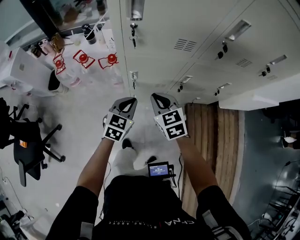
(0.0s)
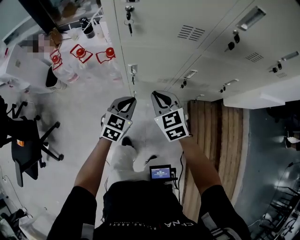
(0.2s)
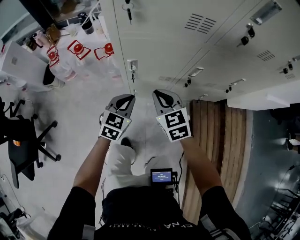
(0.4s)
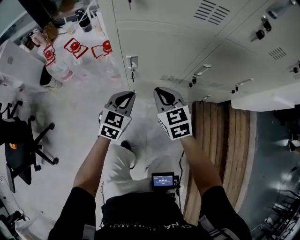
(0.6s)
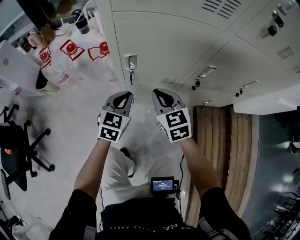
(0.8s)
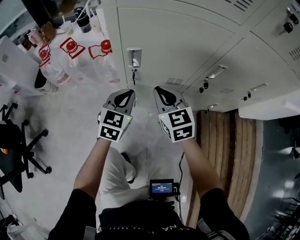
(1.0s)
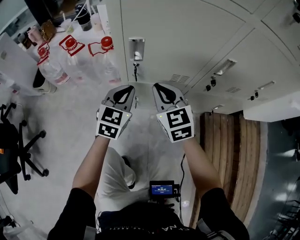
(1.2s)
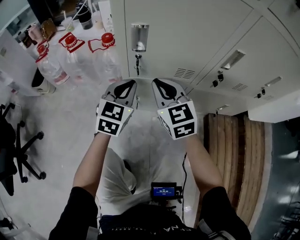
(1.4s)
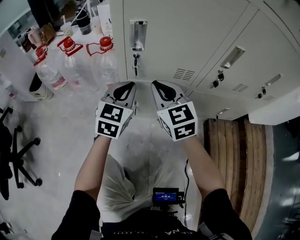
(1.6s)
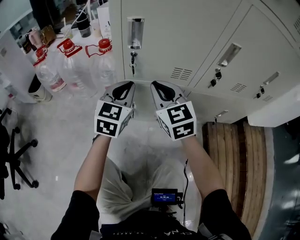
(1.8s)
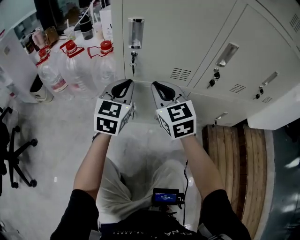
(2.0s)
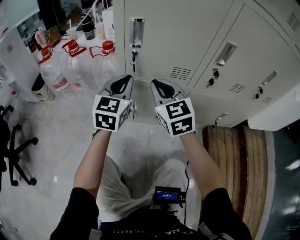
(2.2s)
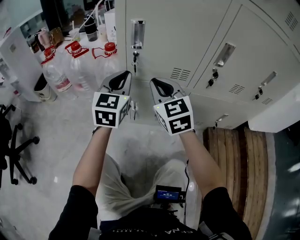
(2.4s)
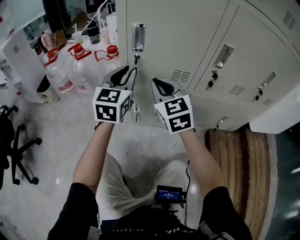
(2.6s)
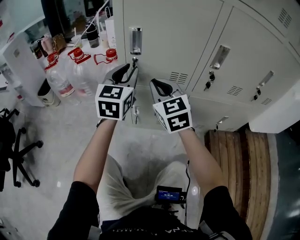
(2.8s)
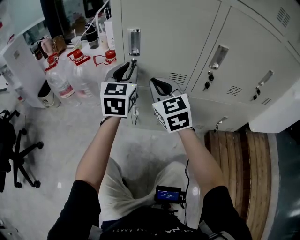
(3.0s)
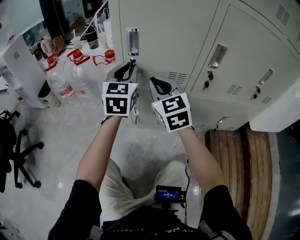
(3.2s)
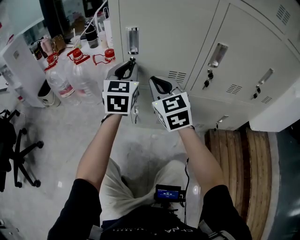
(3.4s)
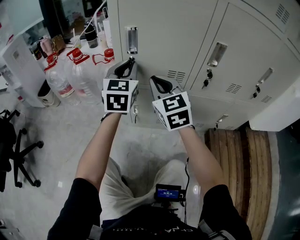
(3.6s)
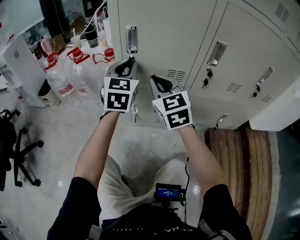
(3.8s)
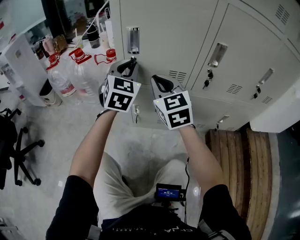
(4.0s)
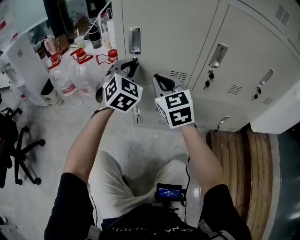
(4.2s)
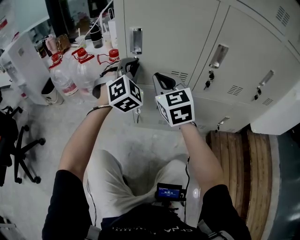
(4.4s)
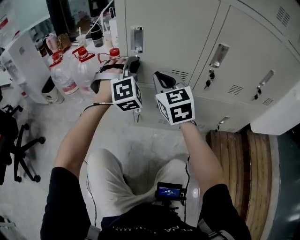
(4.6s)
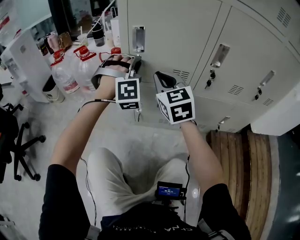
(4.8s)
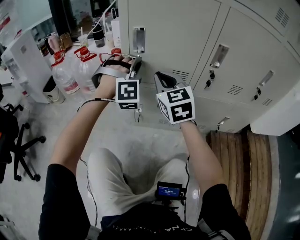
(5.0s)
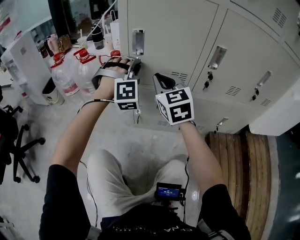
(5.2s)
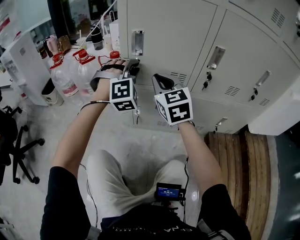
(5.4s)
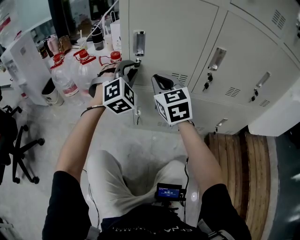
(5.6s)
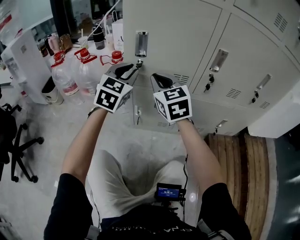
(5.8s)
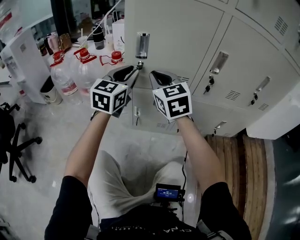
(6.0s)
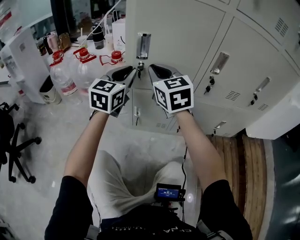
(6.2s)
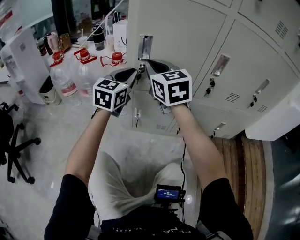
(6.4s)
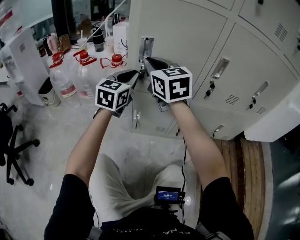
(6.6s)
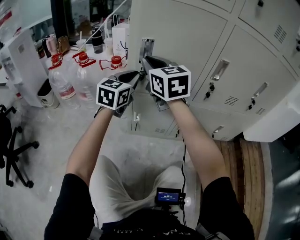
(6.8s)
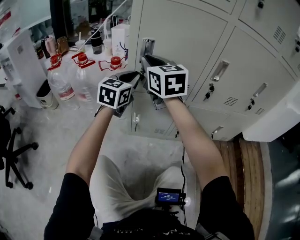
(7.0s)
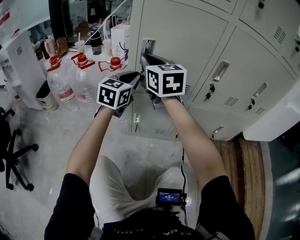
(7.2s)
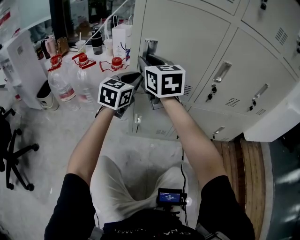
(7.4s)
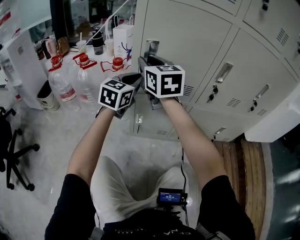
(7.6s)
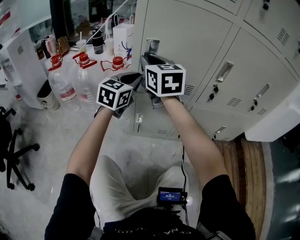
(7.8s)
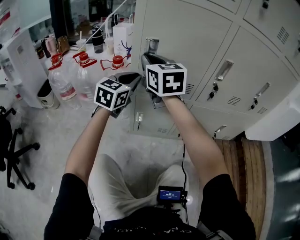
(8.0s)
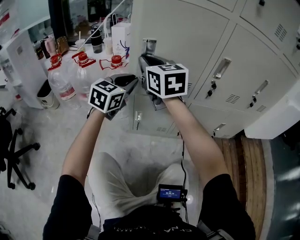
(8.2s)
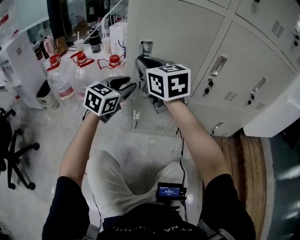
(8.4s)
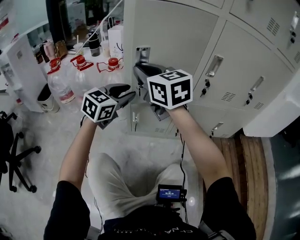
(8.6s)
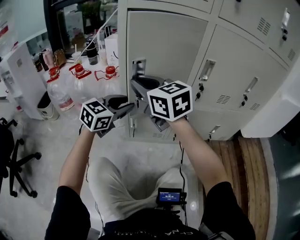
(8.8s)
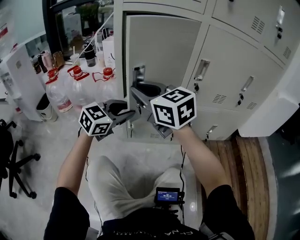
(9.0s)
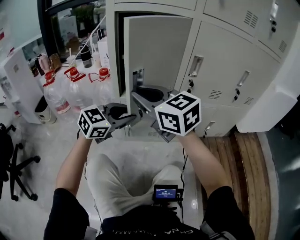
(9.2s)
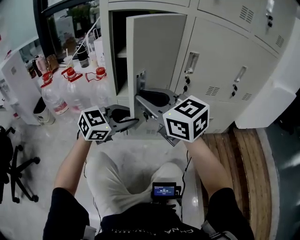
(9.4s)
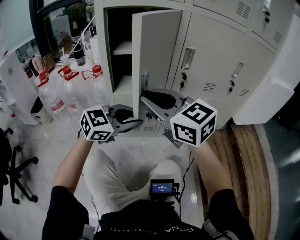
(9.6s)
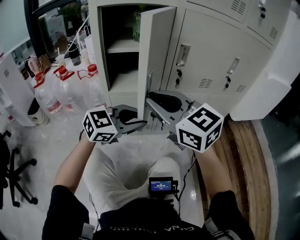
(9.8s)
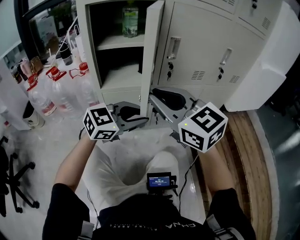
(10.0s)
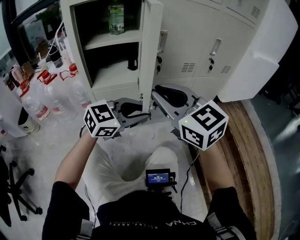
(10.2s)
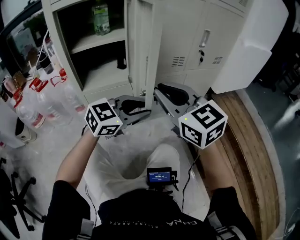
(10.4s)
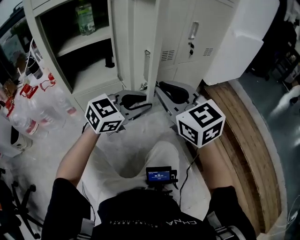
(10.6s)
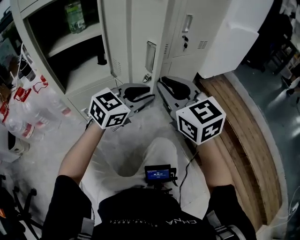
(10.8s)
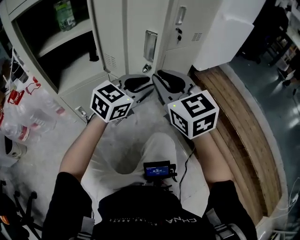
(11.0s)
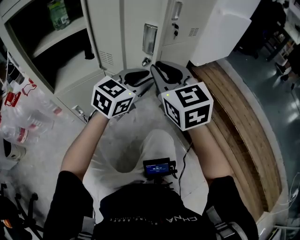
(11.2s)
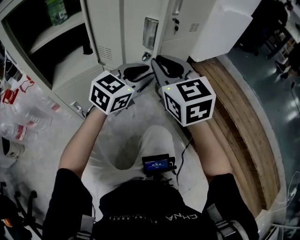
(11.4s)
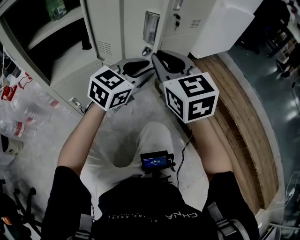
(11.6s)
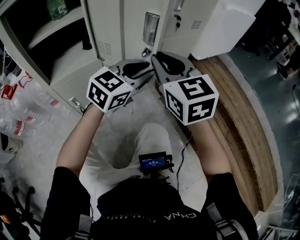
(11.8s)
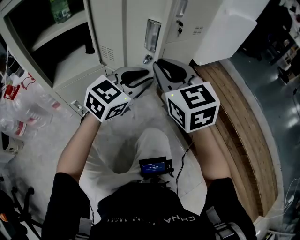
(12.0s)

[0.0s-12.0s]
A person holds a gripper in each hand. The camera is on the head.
0.0s to 1.6s: The grippers both shift downward by roughly 30 cm.
1.6s to 3.0s: The left gripper travels upward by some 10 cm.
3.0s to 4.4s: The left gripper rolls clockwise, seen from behind, by approximately 50 degrees.
4.4s to 6.0s: The left gripper rotates around the line of its fingers by about 50 degrees, counterclockwise from behind.
6.0s to 7.6s: The right gripper goes approximately 10 cm to the left, upward and forward. Meanwhile the left gripper moves roughly 5 cm.
7.6s to 9.0s: The two grippers go some 15 cm backward. The left gripper changes its angle by roughly 30 degrees, and opens its fingers.
9.0s to 10.4s: The right gripper shifts by roughly 25 cm, and changes its angle by roughly 30 degrees; the left gripper changes place by about 25 cm, and turns by approximately 30 degrees.
10.4s to 12.0s: Both grippers travel together forward and to the right, roughly 10 cm. The right gripper turns by about 20 degrees.

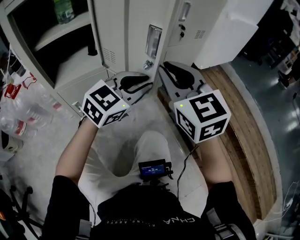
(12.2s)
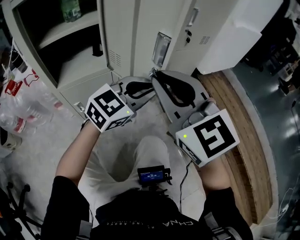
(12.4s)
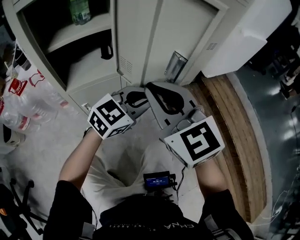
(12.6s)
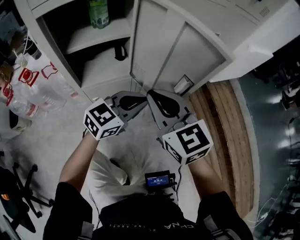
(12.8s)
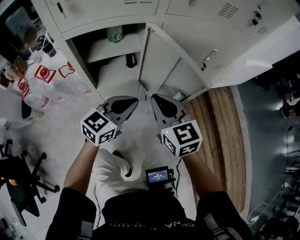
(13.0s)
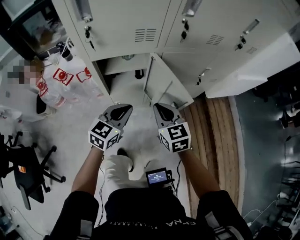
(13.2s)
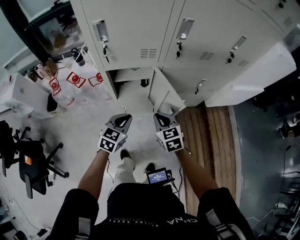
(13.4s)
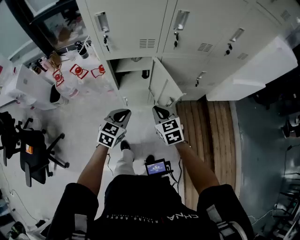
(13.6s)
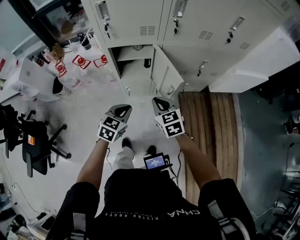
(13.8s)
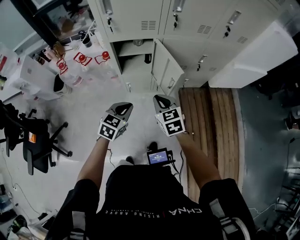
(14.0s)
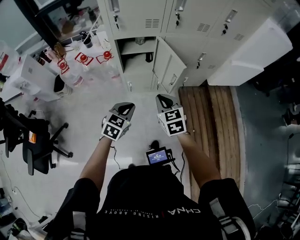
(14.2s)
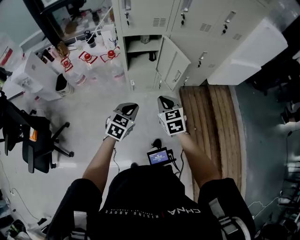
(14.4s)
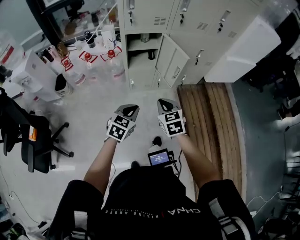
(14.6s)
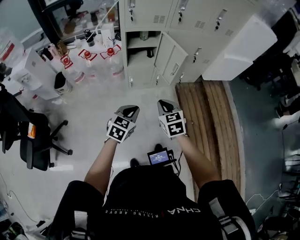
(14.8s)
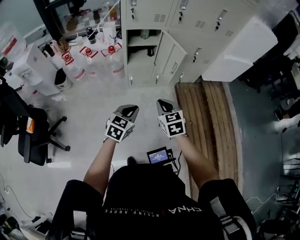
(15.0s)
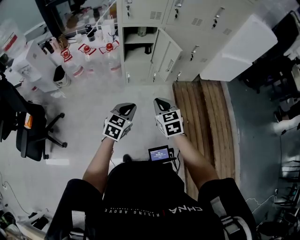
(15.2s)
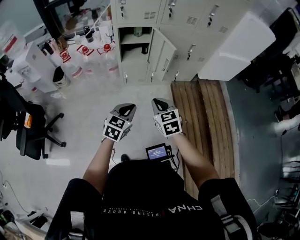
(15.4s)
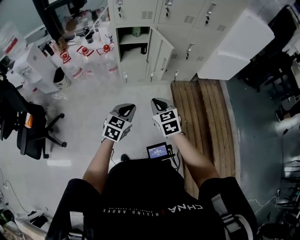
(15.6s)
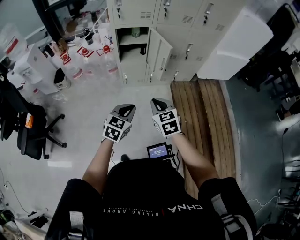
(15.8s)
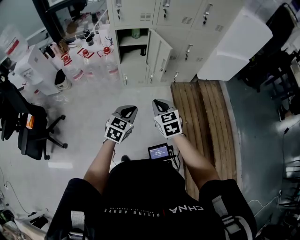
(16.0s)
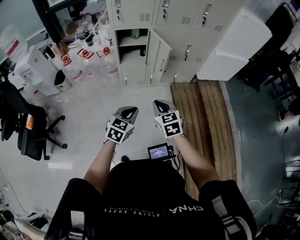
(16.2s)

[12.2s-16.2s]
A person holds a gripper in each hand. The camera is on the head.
12.2s to 13.6s: The grippers both shift upward by about 30 cm. The left gripper changes its angle by approximately 50 degrees. The right gripper changes its angle by approximately 30 degrees.
13.6s to 14.8s: Both grippers move backward, some 30 cm.
14.8s to 16.2s: The two grippers go some 15 cm to the right and backward.

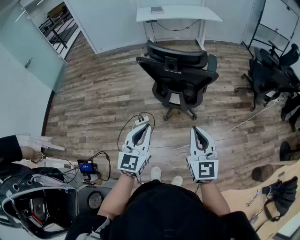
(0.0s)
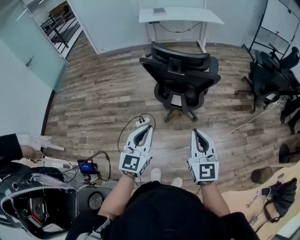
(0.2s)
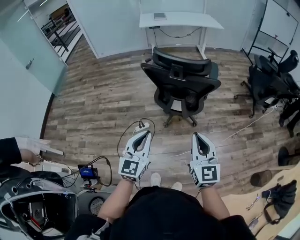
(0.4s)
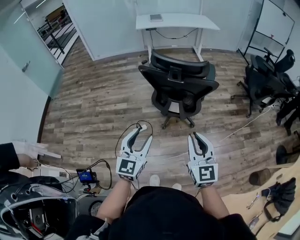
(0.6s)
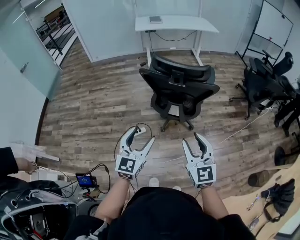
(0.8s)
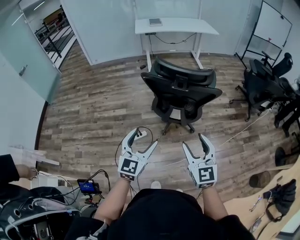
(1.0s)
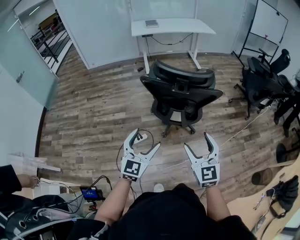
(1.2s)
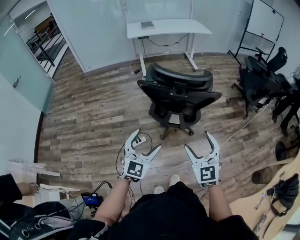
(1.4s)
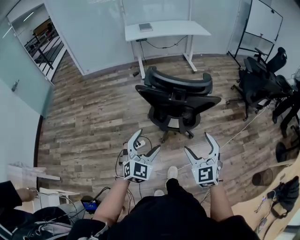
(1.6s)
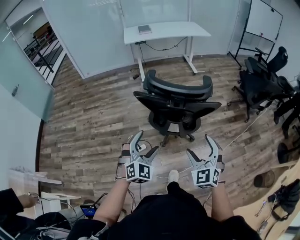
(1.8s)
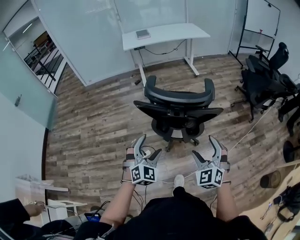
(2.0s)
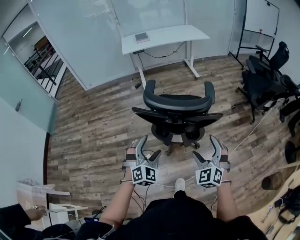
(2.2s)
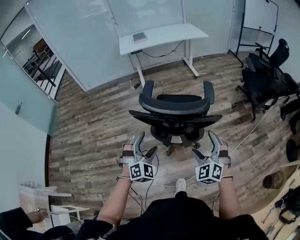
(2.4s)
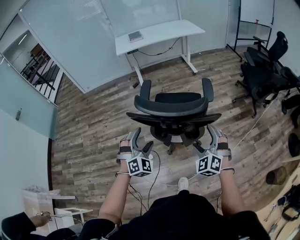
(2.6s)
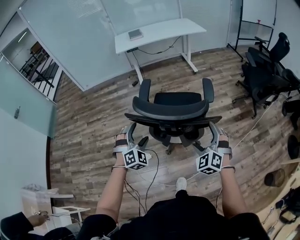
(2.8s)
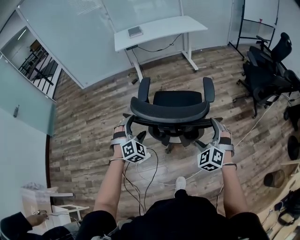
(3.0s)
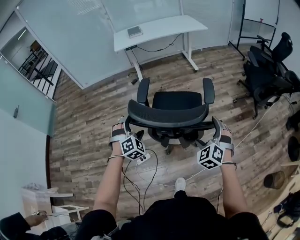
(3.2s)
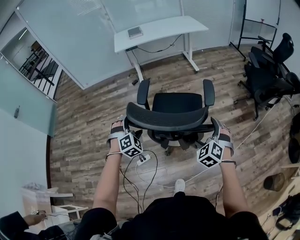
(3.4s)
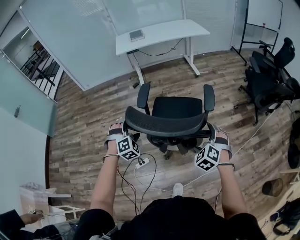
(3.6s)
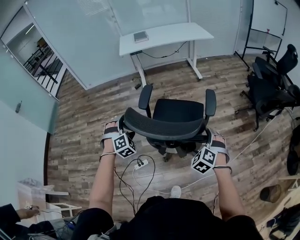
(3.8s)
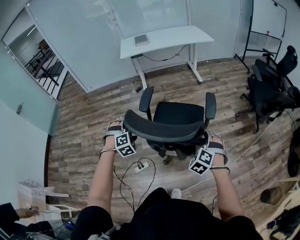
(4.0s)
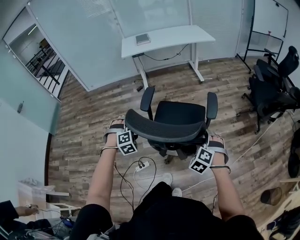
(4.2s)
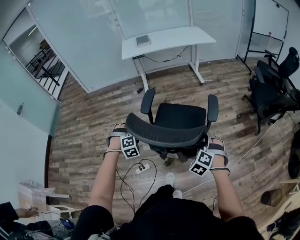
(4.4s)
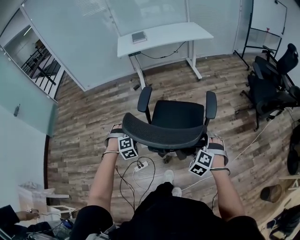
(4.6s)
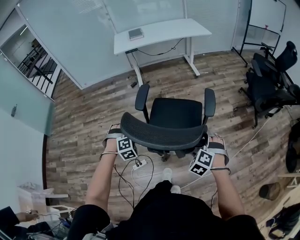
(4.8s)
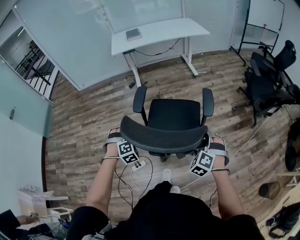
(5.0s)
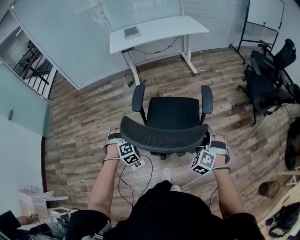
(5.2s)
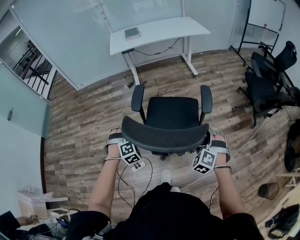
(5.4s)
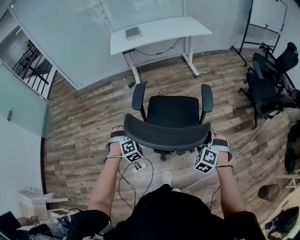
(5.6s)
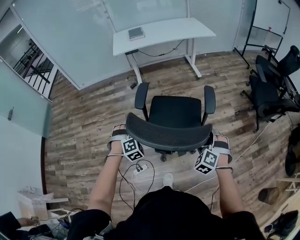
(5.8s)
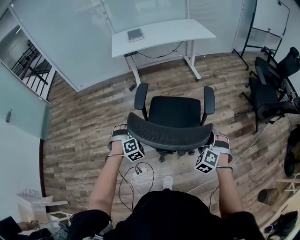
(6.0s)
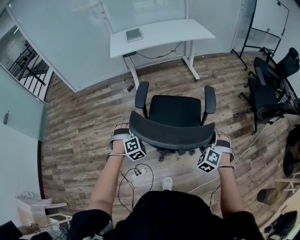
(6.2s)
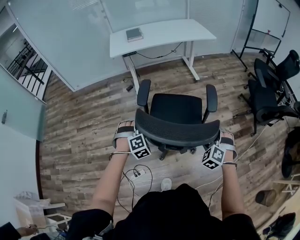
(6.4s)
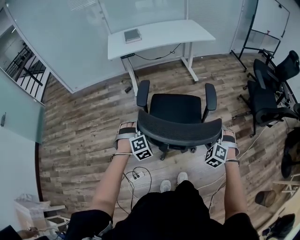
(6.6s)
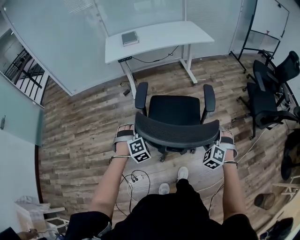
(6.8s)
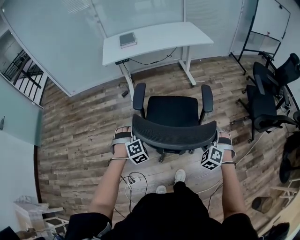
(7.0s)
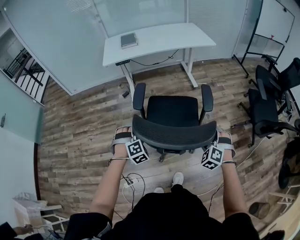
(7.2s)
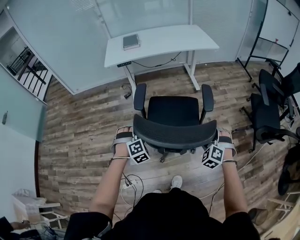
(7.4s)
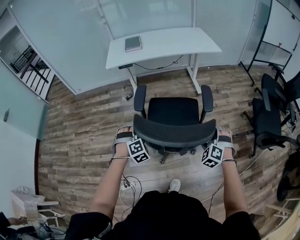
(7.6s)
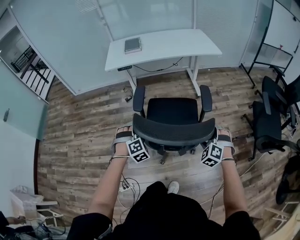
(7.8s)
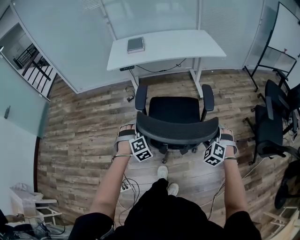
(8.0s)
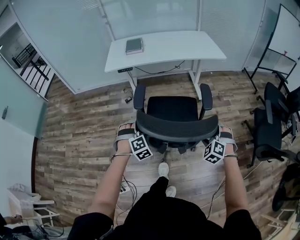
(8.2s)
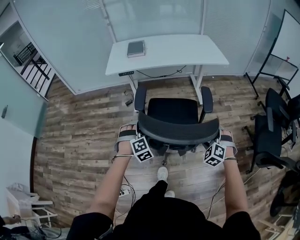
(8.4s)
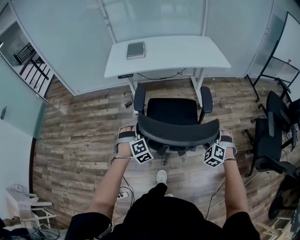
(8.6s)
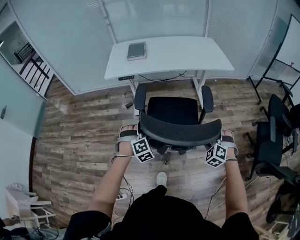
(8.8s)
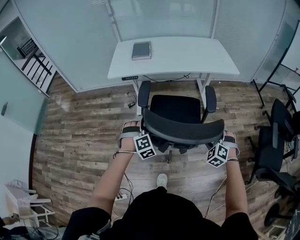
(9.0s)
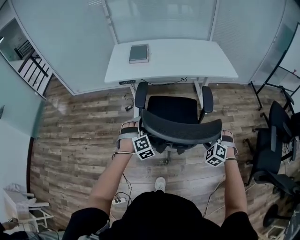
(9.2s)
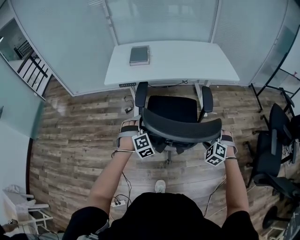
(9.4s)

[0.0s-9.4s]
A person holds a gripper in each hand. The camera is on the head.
0.0s to 1.6s: The right gripper travels forward, to the left and downward by some 15 cm, turns by roughly 20 degrees, and opens its fingers; the left gripper heads forward, covering about 15 cm, rotates roughly 30 degrees, and opens.
1.6s to 3.2s: The left gripper heads forward, covering some 30 cm, and rotates approximately 40 degrees, while the right gripper shifts some 25 cm forward and to the right, and changes its angle by roughly 30 degrees.
3.2s to 4.8s: The right gripper moves downward, approximately 5 cm, and swivels approximately 20 degrees; the left gripper is displaced downward and forward by approximately 10 cm.
4.8s to 6.2s: The two grippers go approximately 15 cm forward.
6.2s to 7.8s: The grippers both shift forward and to the right by roughly 25 cm.
7.8s to 9.4s: The grippers both shift forward by approximately 30 cm.
